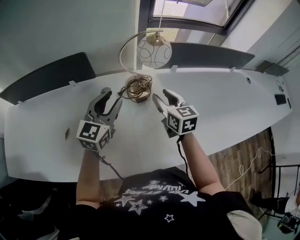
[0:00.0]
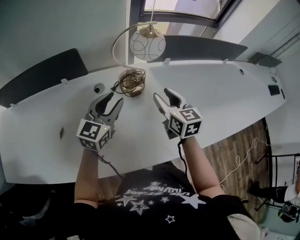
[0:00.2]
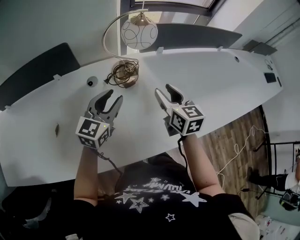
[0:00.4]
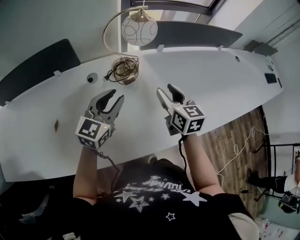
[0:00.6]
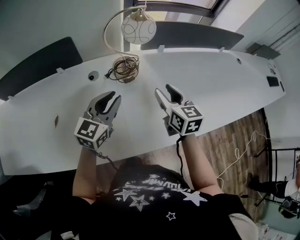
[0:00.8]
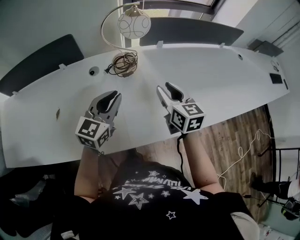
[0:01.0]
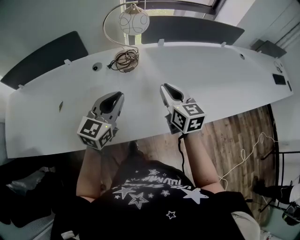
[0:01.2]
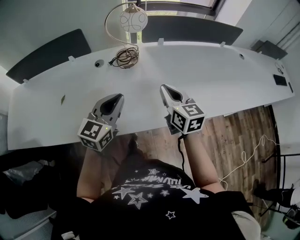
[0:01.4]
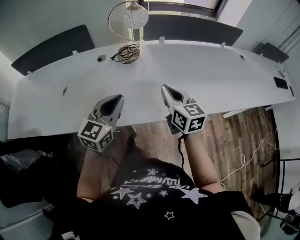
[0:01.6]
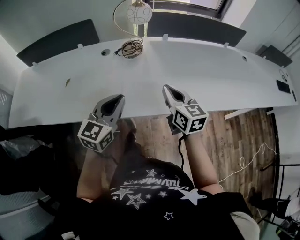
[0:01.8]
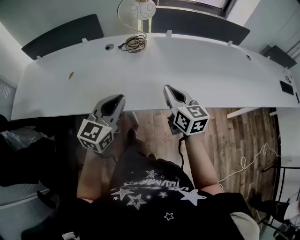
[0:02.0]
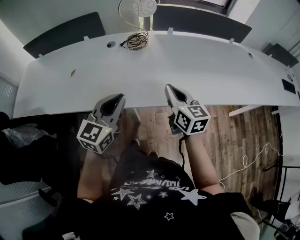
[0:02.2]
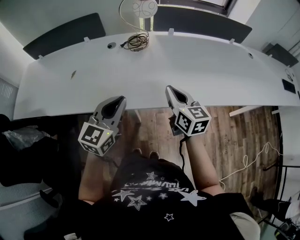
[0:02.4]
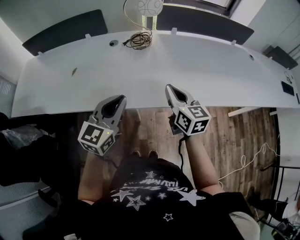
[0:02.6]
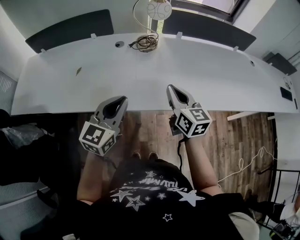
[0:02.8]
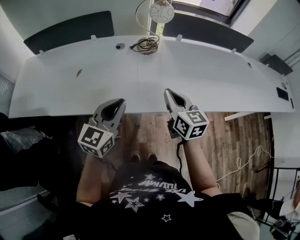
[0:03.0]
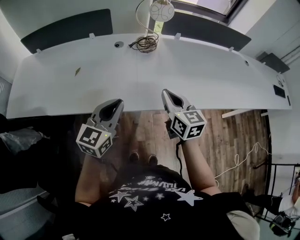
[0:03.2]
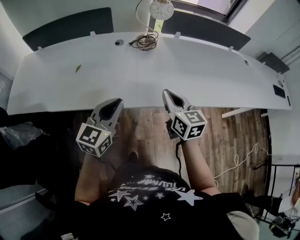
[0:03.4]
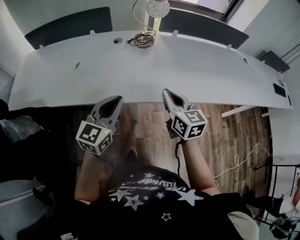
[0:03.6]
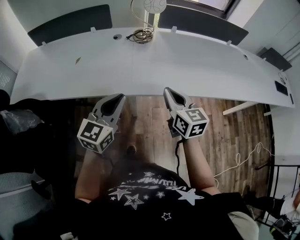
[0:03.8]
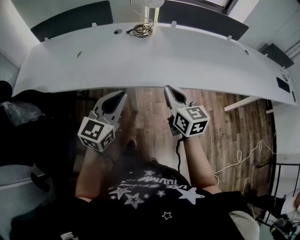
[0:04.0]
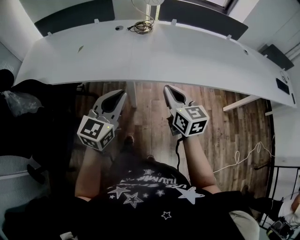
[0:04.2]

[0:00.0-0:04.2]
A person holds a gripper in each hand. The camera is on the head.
0.0 to 1.4 s: Both grippers travel together backward and to the right, some 20 cm. The left gripper closes. The right gripper closes its fingers.
1.4 to 2.8 s: Both grippers travel together backward, about 10 cm.
2.8 to 4.2 s: Both grippers move backward, roughly 15 cm.

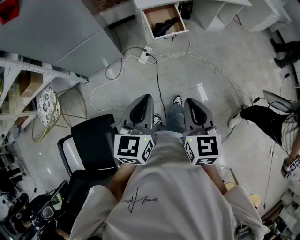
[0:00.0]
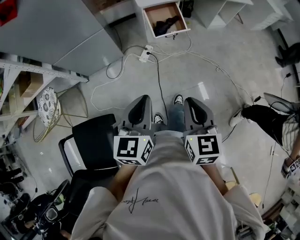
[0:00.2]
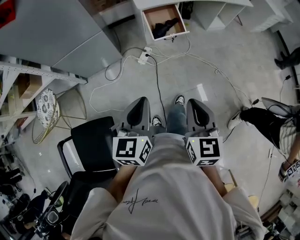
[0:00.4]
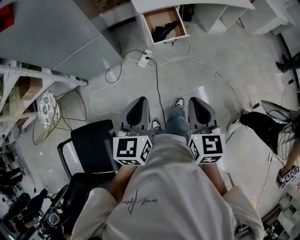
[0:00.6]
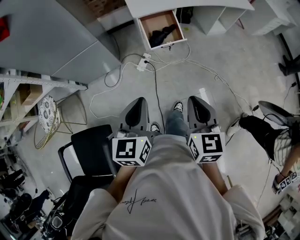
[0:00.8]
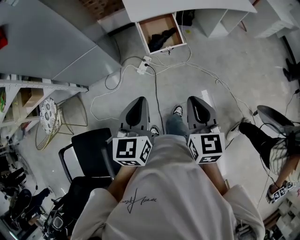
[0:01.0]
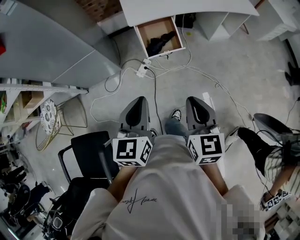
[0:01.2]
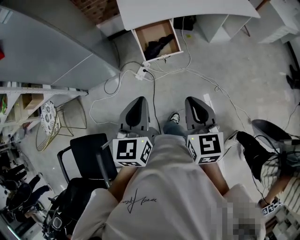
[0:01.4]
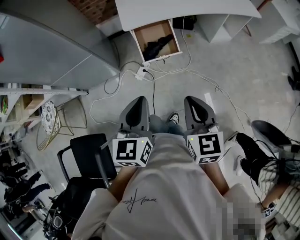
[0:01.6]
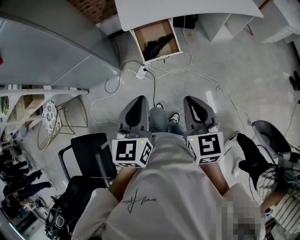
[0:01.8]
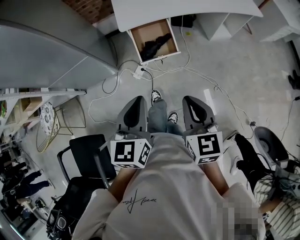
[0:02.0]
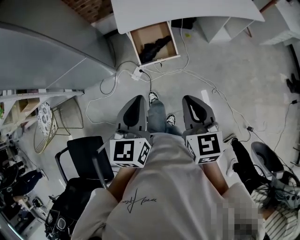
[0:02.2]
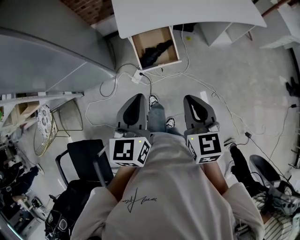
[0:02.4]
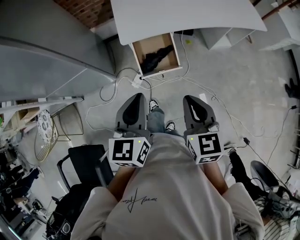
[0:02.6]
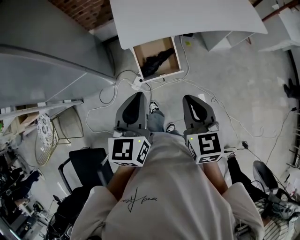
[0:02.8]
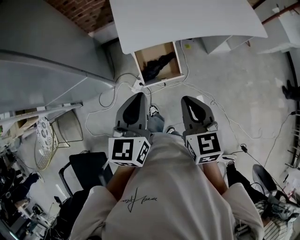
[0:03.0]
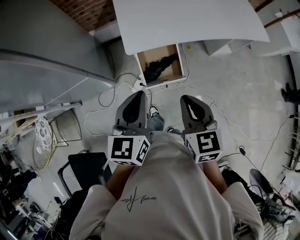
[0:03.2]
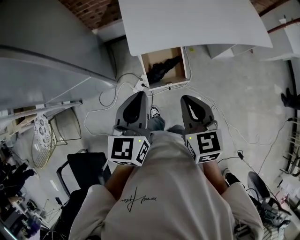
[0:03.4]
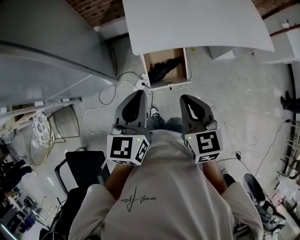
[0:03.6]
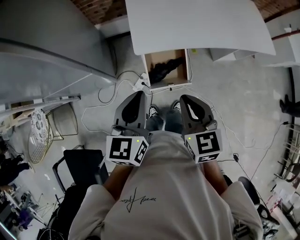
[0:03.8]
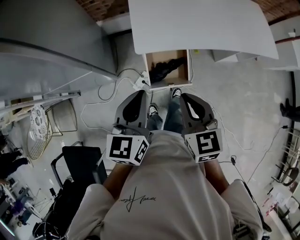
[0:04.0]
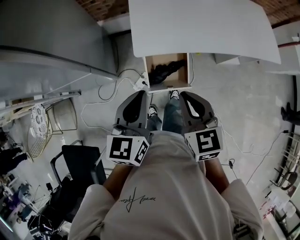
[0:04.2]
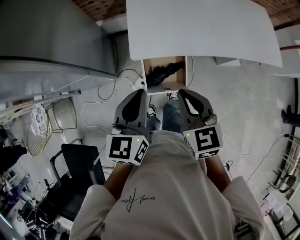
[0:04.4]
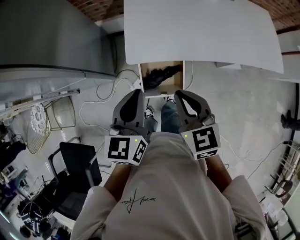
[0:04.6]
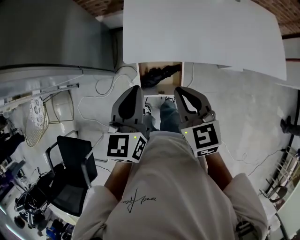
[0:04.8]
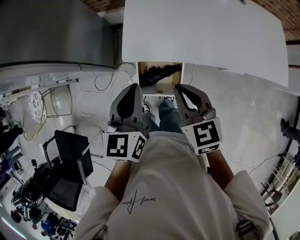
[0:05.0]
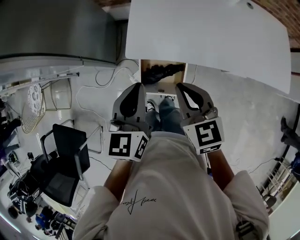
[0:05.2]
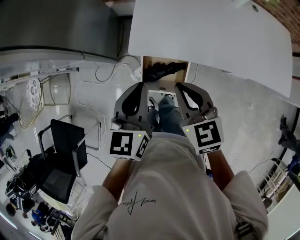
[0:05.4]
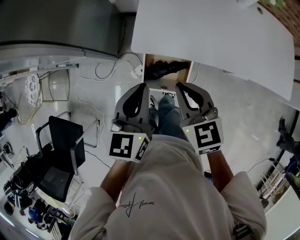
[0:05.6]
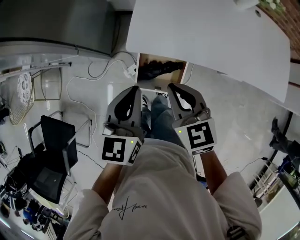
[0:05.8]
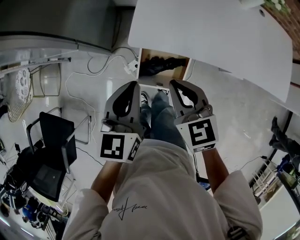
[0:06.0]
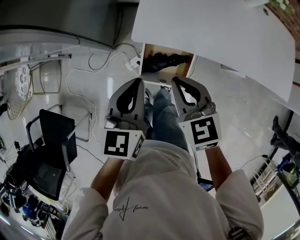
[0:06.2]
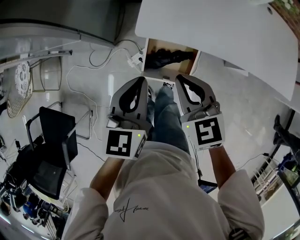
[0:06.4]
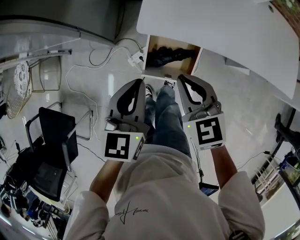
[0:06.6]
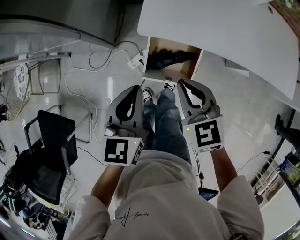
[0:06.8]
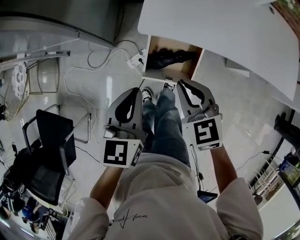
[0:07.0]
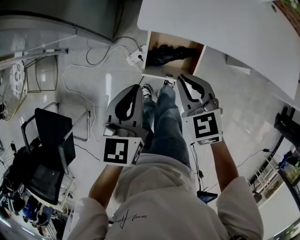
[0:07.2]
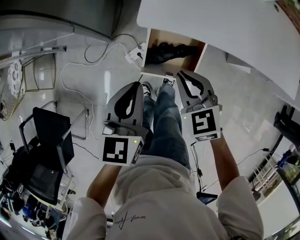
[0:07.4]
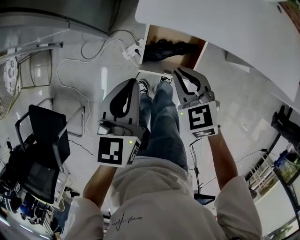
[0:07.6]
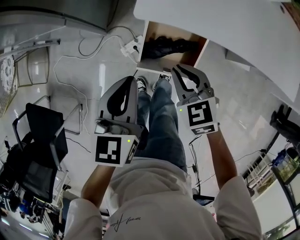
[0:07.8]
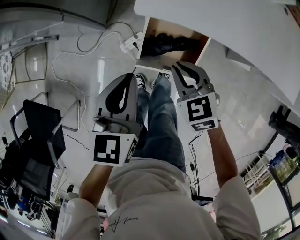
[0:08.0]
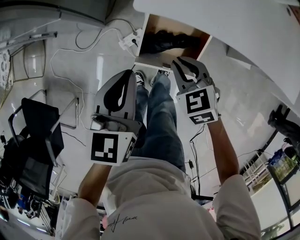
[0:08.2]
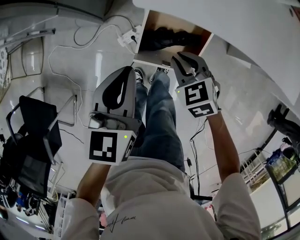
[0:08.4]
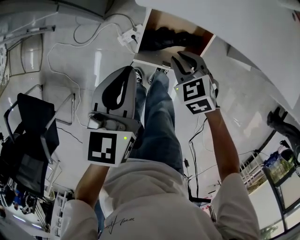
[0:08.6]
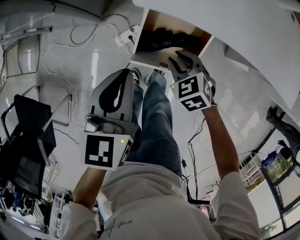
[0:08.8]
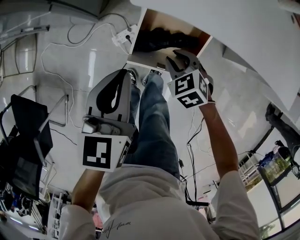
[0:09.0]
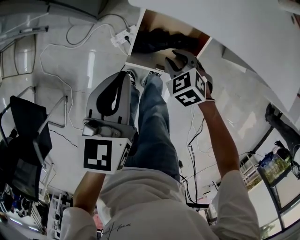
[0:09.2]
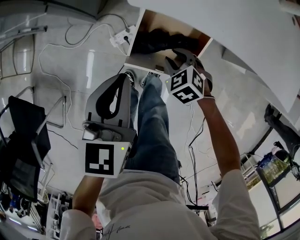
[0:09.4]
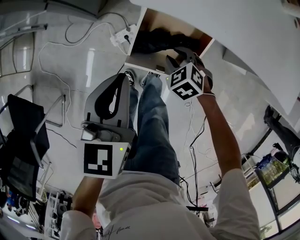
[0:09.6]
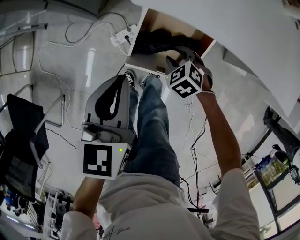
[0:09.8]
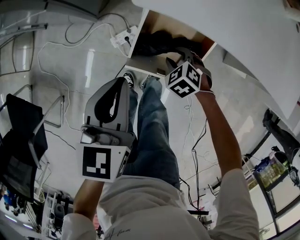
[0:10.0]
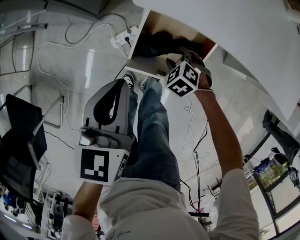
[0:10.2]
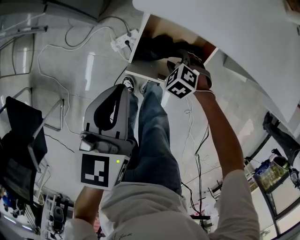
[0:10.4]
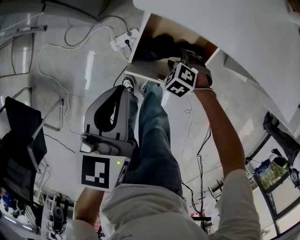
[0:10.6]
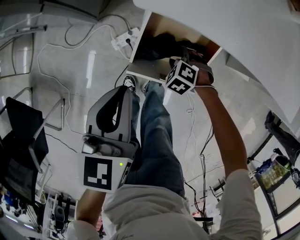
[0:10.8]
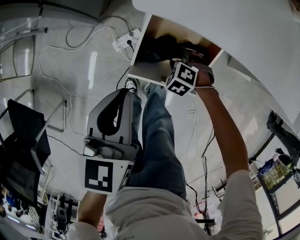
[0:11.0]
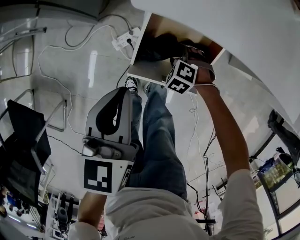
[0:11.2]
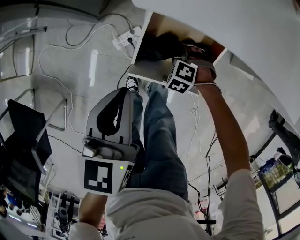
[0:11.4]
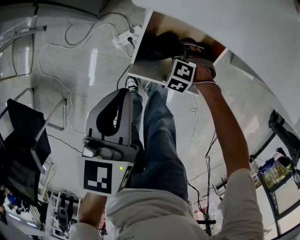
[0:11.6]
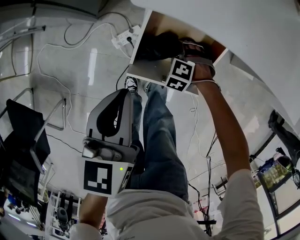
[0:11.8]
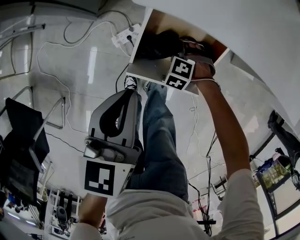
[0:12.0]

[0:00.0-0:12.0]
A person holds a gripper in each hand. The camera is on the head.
0.0 to 1.6 s: The two grippers go approximately 25 cm forward and to the right.
1.6 to 3.0 s: Both grippers travel together forward, about 20 cm.
3.0 to 4.4 s: The grippers both shift forward by about 10 cm.
4.4 to 6.0 s: The left gripper is displaced downward by approximately 5 cm. The right gripper shifts approximately 10 cm downward and forward, and rotates about 20 degrees.
6.0 to 7.6 s: Both grippers travel together downward, approximately 10 cm.
7.6 to 9.0 s: The left gripper moves downward, some 5 cm; the right gripper is displaced downward by about 15 cm, and turns by about 20 degrees.
9.0 to 10.4 s: The right gripper heads downward, covering roughly 10 cm, and changes its angle by roughly 20 degrees.
10.4 to 12.0 s: The right gripper moves downward, some 5 cm, and rotates approximately 20 degrees.

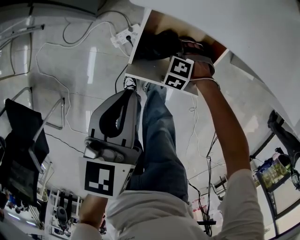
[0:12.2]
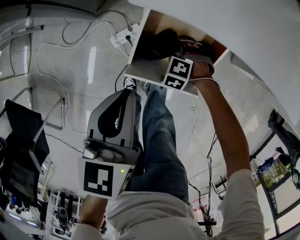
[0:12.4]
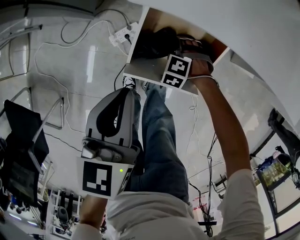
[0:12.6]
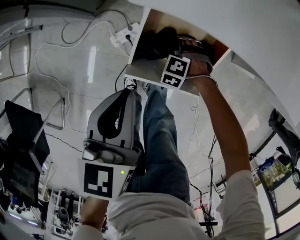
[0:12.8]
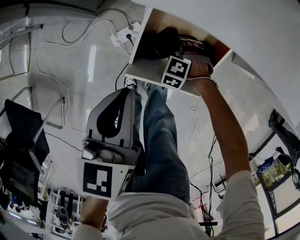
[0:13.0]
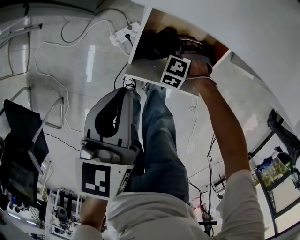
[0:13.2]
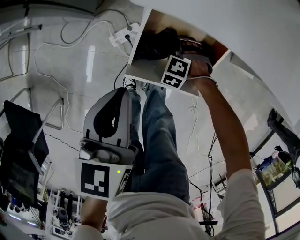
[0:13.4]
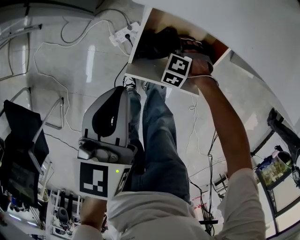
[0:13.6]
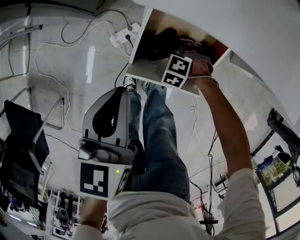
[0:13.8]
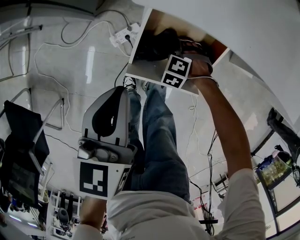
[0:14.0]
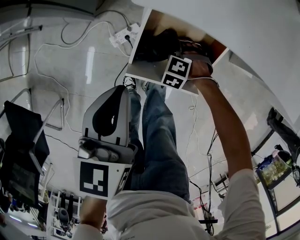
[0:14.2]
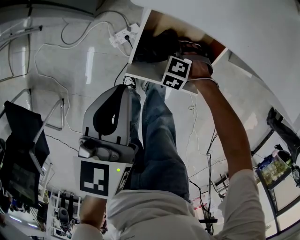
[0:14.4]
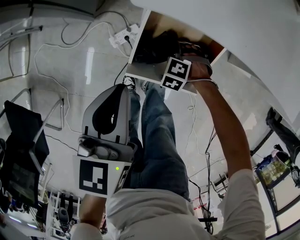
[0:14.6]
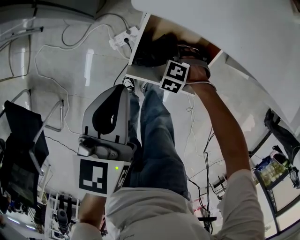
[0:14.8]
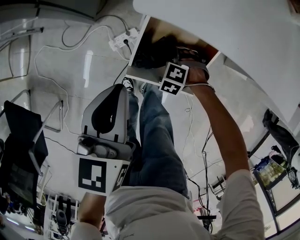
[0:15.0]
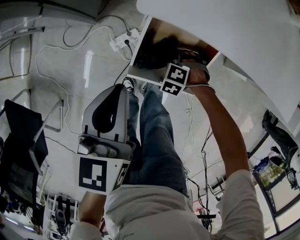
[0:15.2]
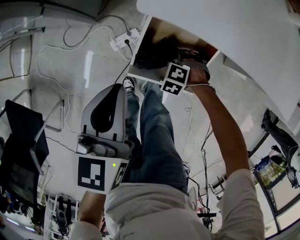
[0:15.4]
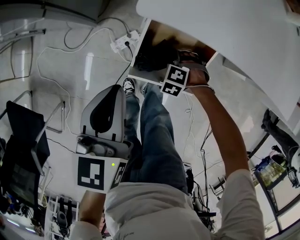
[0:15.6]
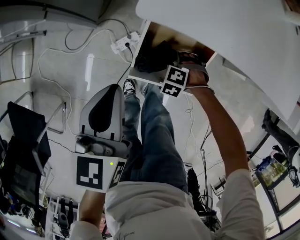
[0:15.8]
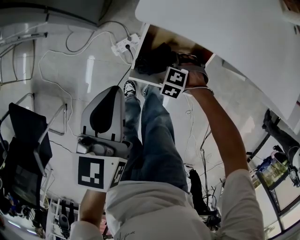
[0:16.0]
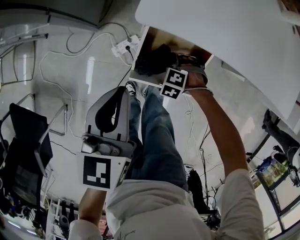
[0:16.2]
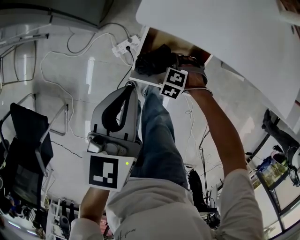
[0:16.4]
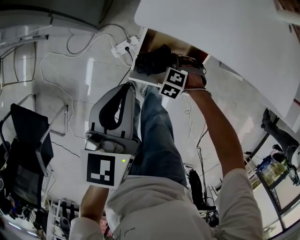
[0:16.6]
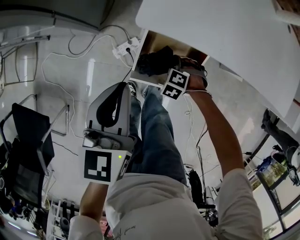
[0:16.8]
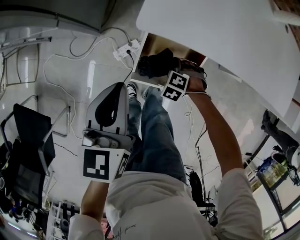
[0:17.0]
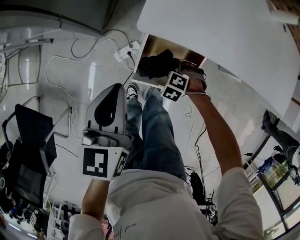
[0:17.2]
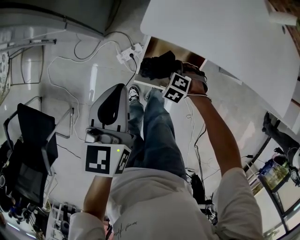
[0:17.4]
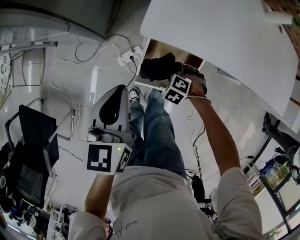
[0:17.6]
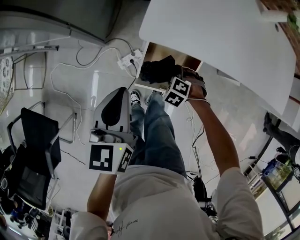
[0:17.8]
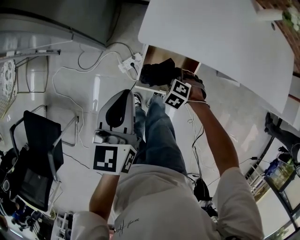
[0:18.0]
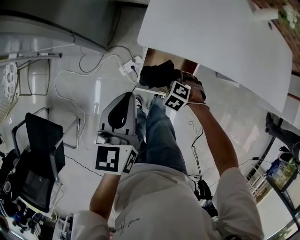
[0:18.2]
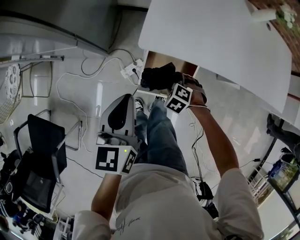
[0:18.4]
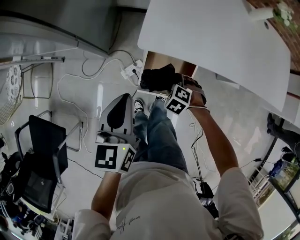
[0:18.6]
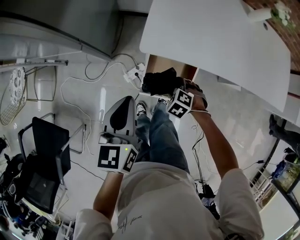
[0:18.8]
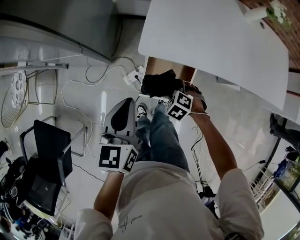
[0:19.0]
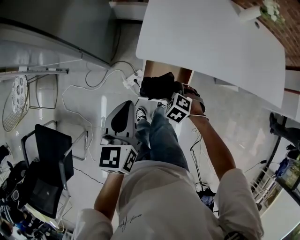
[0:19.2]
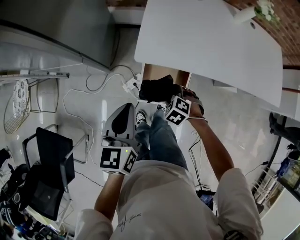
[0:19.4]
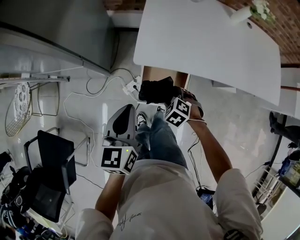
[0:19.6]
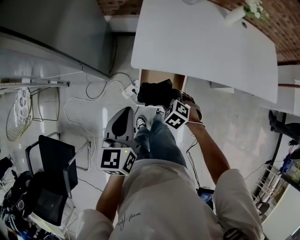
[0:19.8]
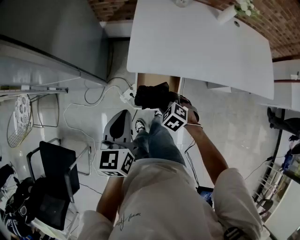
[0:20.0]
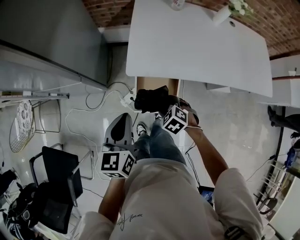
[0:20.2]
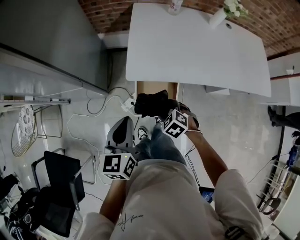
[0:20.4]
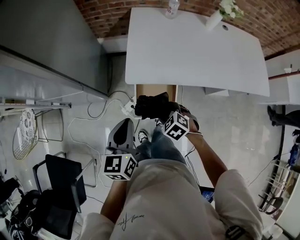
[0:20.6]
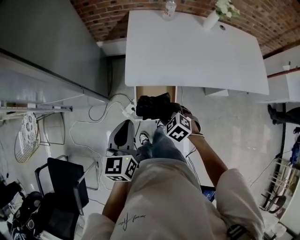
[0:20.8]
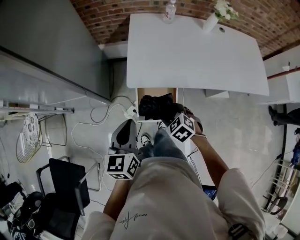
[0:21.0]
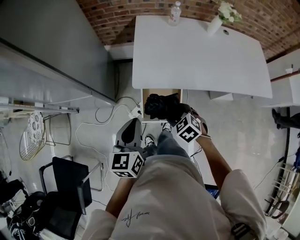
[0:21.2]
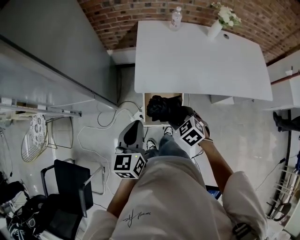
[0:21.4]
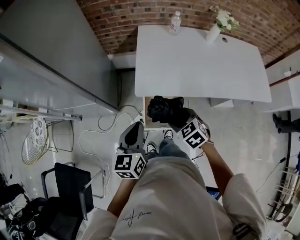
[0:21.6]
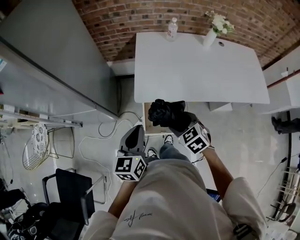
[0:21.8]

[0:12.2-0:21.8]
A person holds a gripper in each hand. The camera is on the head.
12.2 to 13.8 s: The grippers make only small movements.
13.8 to 15.4 s: The right gripper changes place by about 5 cm.
15.4 to 17.0 s: The two grippers go roughly 5 cm upward.
17.0 to 18.6 s: The left gripper travels upward by some 5 cm. Meanwhile the right gripper heads upward, covering some 10 cm.
18.6 to 20.2 s: The right gripper moves upward, roughly 10 cm, while the left gripper is displaced upward by approximately 5 cm.
20.2 to 21.8 s: The right gripper heads upward, covering roughly 15 cm, and swivels roughly 20 degrees.
